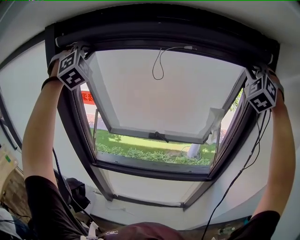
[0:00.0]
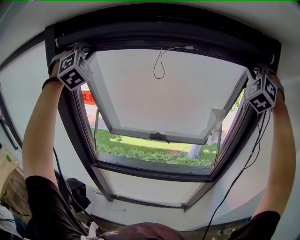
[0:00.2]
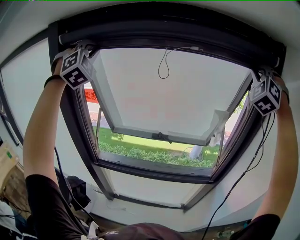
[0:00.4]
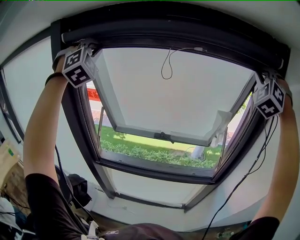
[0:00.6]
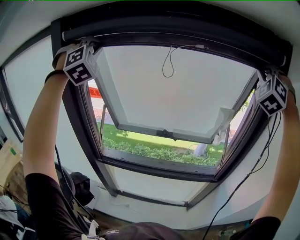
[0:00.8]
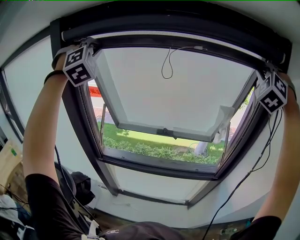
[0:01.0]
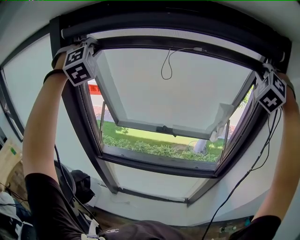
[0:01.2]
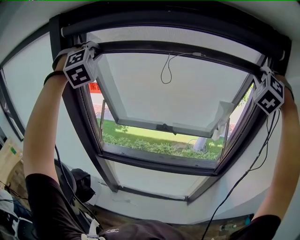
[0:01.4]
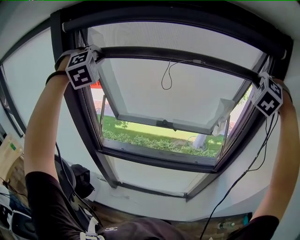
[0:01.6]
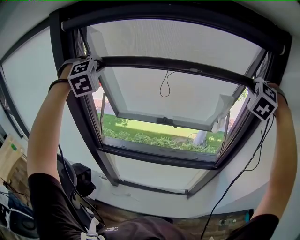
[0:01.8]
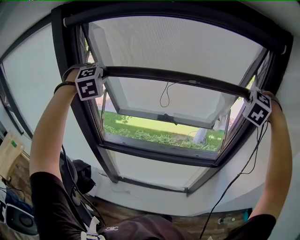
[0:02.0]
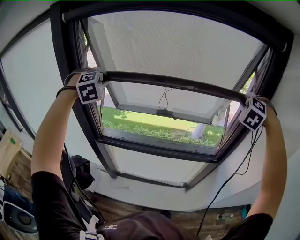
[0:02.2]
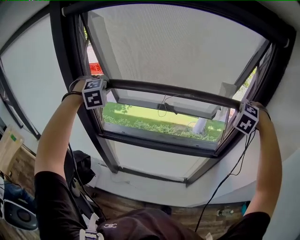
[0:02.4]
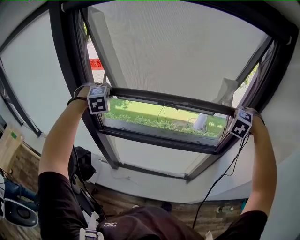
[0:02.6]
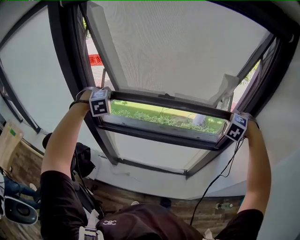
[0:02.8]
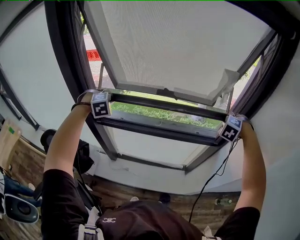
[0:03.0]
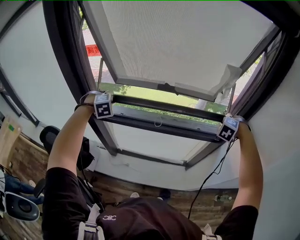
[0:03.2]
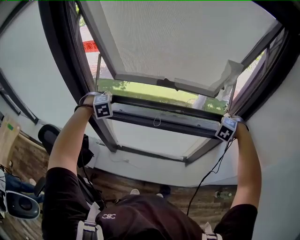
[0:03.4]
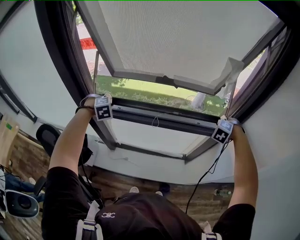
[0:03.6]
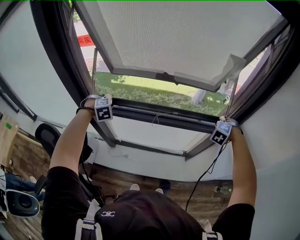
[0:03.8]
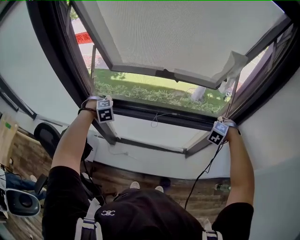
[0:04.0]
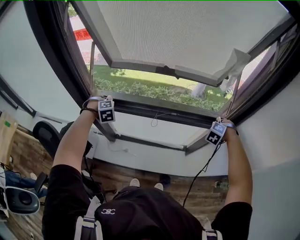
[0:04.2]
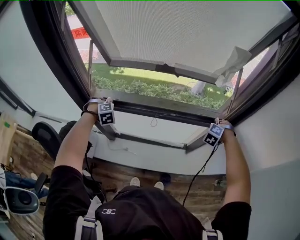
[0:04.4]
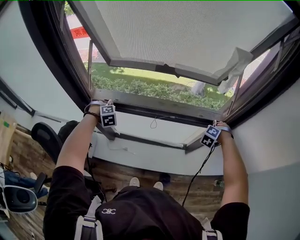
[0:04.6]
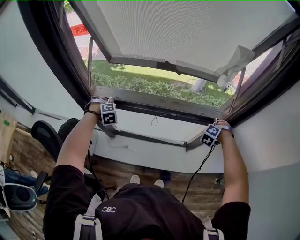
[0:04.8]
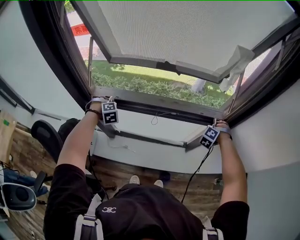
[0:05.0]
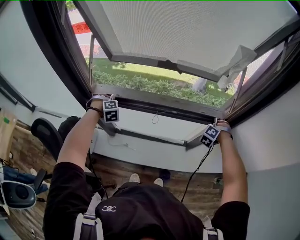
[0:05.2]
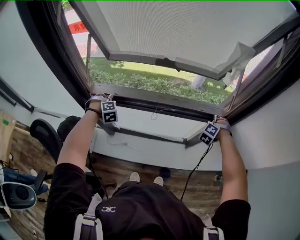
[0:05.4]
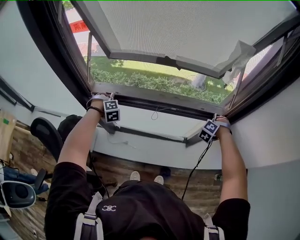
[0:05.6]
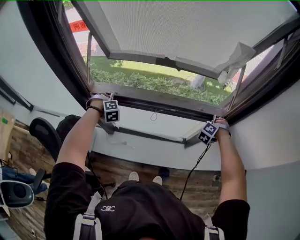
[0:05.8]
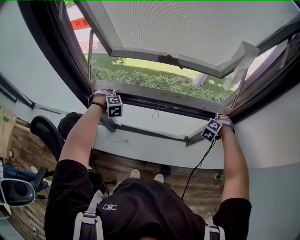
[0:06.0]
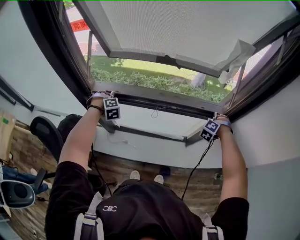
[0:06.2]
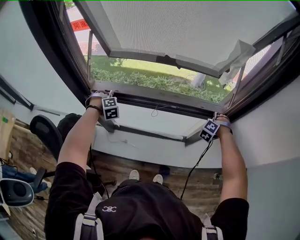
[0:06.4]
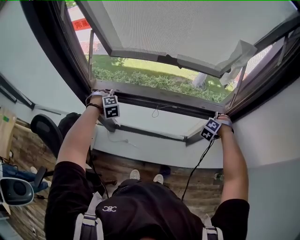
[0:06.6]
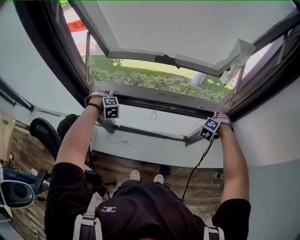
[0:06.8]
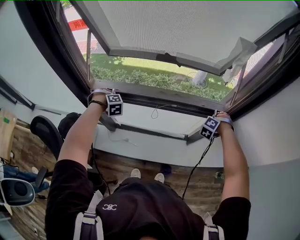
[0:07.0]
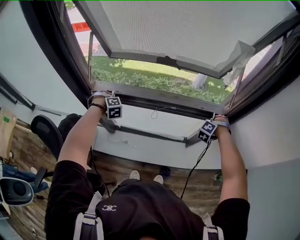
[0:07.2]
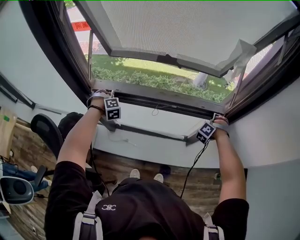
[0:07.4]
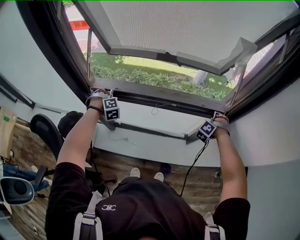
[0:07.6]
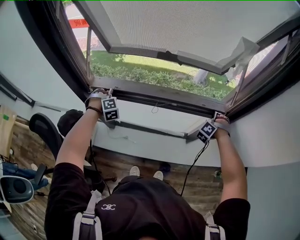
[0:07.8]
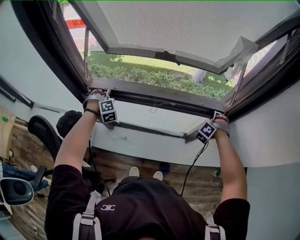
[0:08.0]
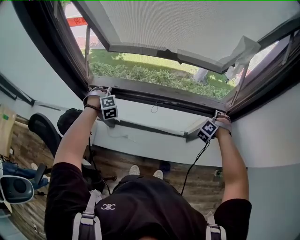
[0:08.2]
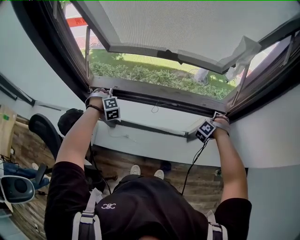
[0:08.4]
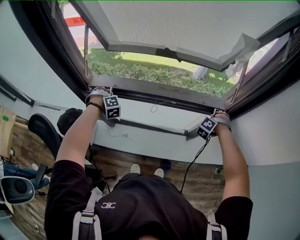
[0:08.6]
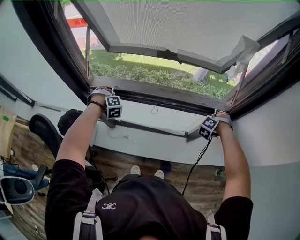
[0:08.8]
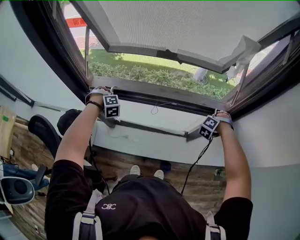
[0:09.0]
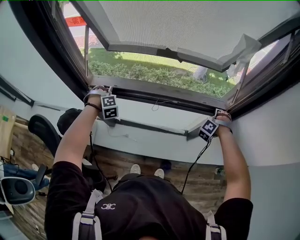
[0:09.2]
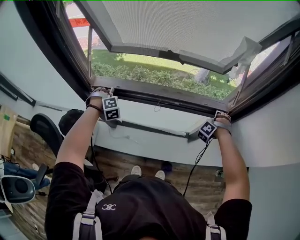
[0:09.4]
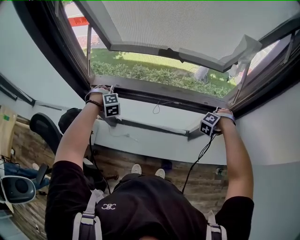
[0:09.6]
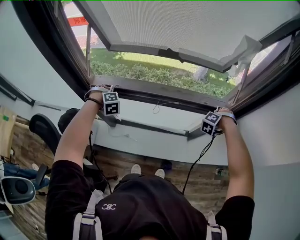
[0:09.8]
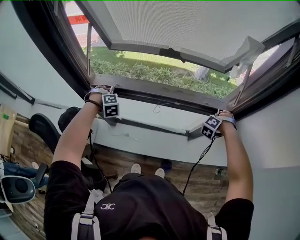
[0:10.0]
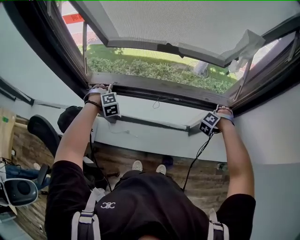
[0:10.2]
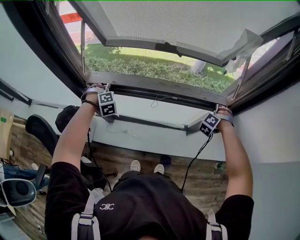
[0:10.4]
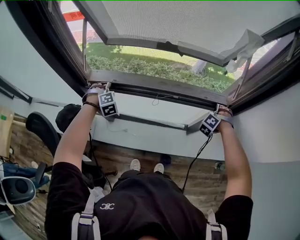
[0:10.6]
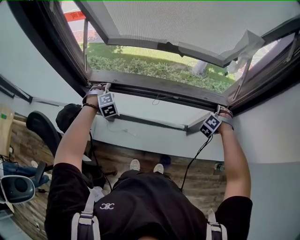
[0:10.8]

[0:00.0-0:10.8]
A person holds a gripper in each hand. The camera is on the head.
0:00.0 to 0:01.6: The two grippers go some 10 cm downward. The left gripper rotates approximately 20 degrees, while the right gripper swivels approximately 30 degrees.
0:01.6 to 0:03.0: The two grippers go approximately 40 cm downward. The right gripper tilts its fingers roughly 30 degrees downward. The left gripper tips its fingers downward by approximately 30 degrees.
0:03.0 to 0:04.6: Both grippers move downward, some 25 cm.
0:04.6 to 0:09.2: The grippers stay close to where they were, moving slightly.
0:09.2 to 0:10.8: The left gripper opens its fingers.

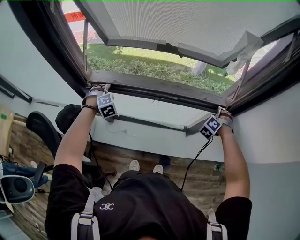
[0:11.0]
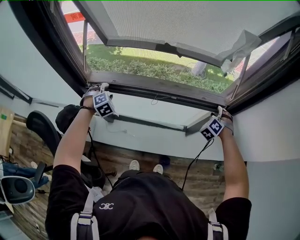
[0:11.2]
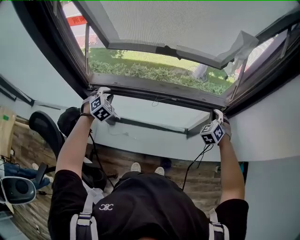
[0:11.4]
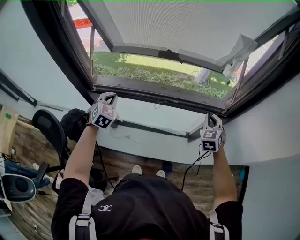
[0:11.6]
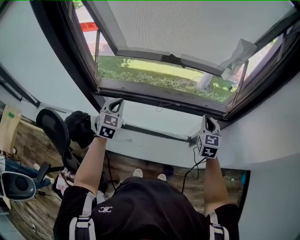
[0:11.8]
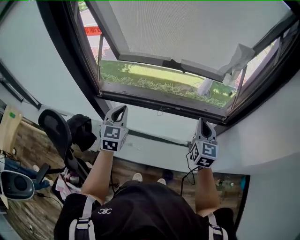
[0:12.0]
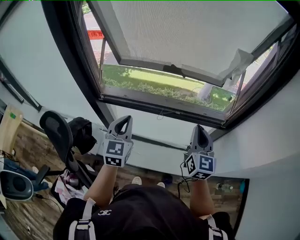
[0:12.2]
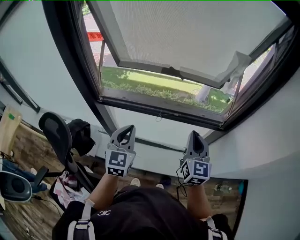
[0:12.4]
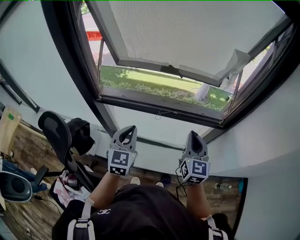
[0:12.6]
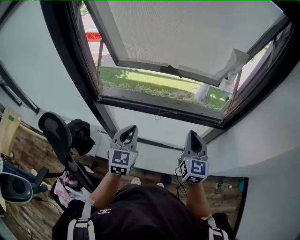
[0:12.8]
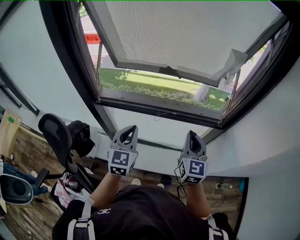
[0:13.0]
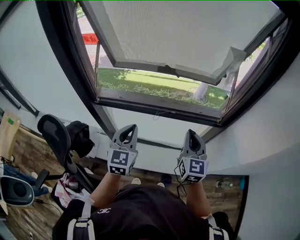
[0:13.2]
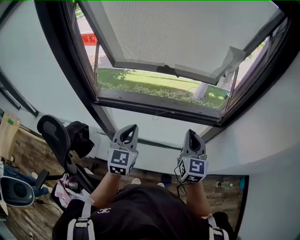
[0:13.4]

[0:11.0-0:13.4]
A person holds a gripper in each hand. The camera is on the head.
0:11.0 to 0:12.2: The right gripper is displaced upward, to the left and backward by roughly 30 cm, tips its fingers upward by about 40 degrees, and closes up. Meanwhile the left gripper moves upward, backward and to the right, some 30 cm, tips its fingers upward by roughly 40 degrees, and closes its fingers.
0:12.2 to 0:13.4: The left gripper shifts by roughly 5 cm.

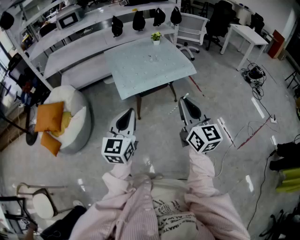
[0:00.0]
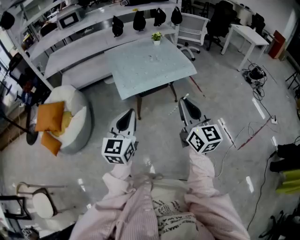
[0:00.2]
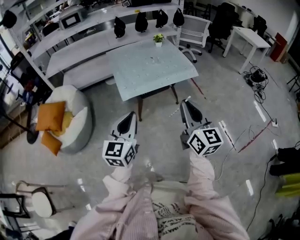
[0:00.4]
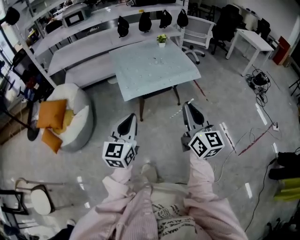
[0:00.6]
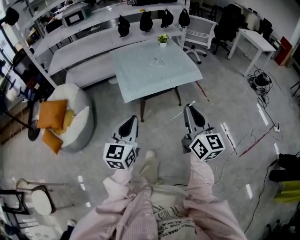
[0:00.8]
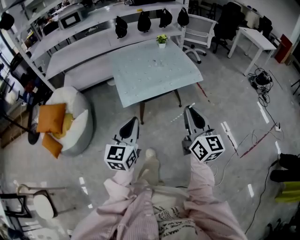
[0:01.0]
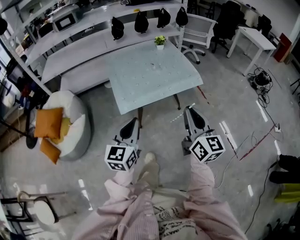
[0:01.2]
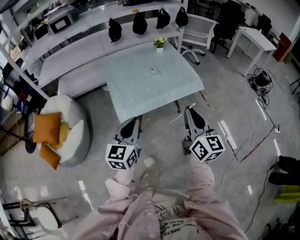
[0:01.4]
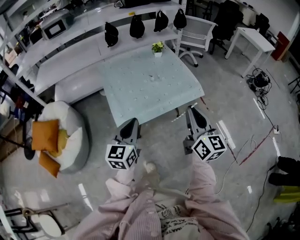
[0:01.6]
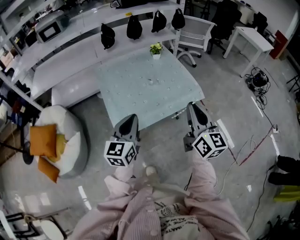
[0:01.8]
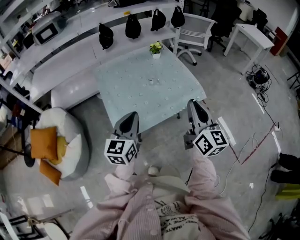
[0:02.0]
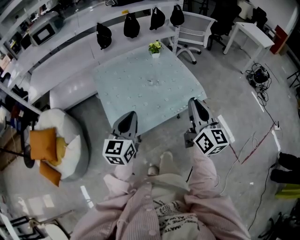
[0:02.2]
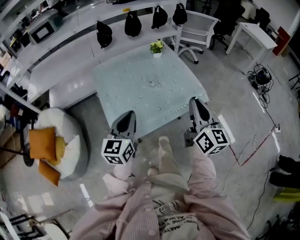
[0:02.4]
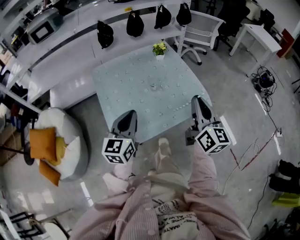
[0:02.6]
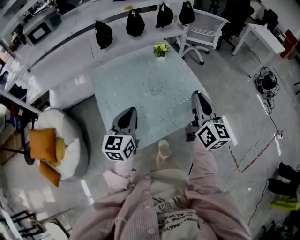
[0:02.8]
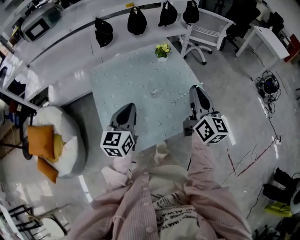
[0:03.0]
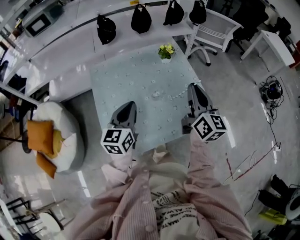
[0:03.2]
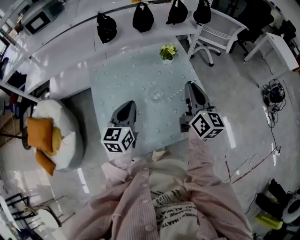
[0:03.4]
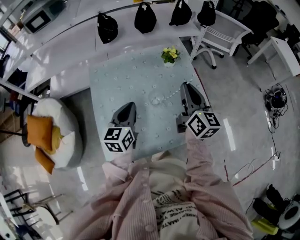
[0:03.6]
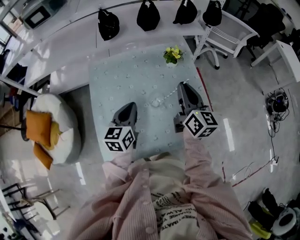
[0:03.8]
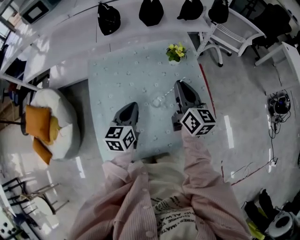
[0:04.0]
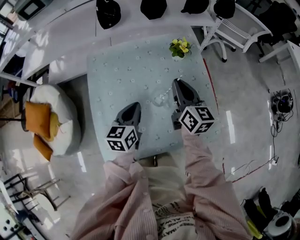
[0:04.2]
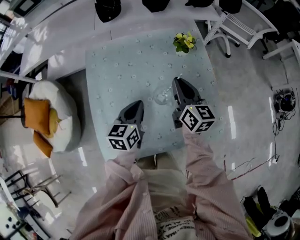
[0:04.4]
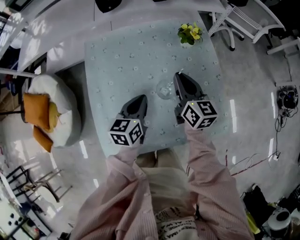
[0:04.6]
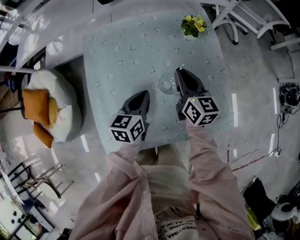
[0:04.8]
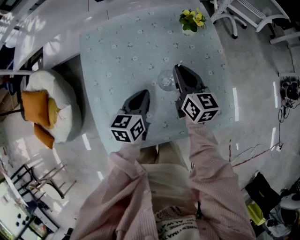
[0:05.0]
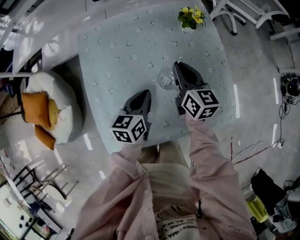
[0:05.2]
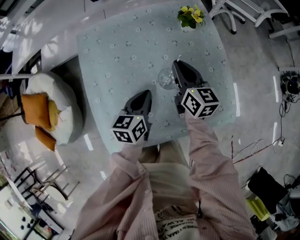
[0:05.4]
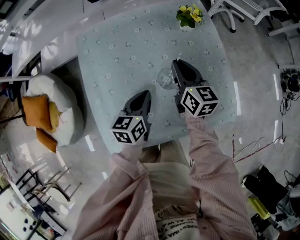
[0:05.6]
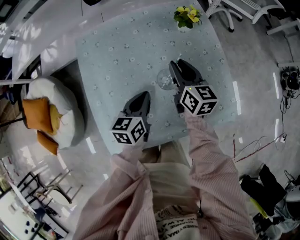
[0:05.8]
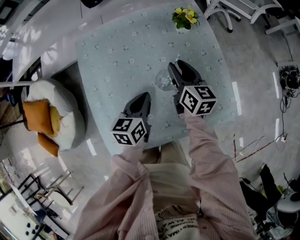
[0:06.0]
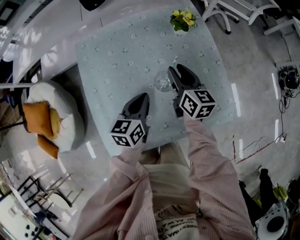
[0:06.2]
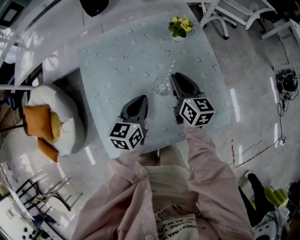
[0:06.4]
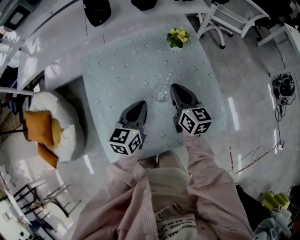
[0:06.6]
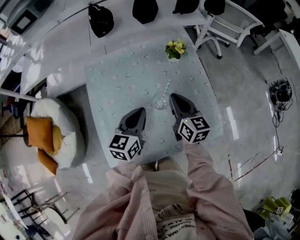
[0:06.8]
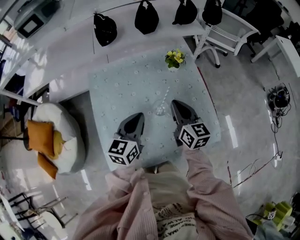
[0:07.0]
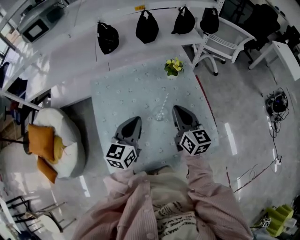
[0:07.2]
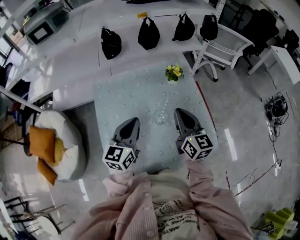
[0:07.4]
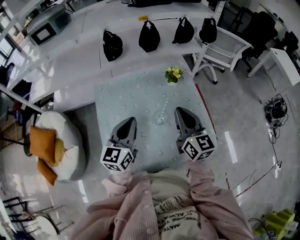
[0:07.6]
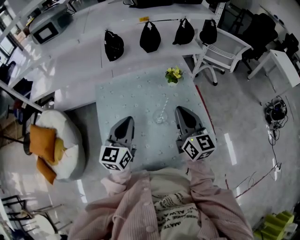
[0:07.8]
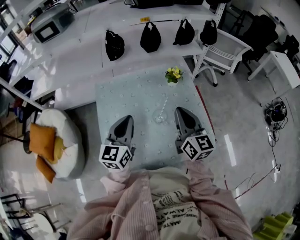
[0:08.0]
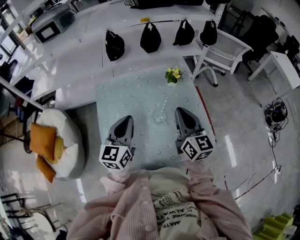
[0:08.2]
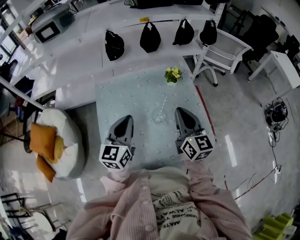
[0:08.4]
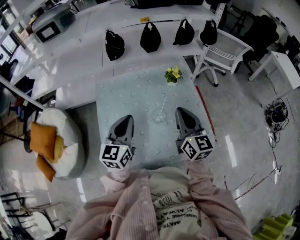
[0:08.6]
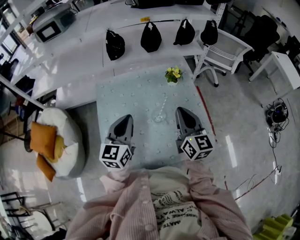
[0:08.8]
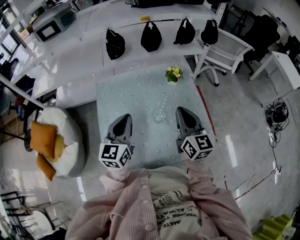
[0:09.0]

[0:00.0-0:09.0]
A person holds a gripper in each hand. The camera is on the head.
0:00.0 to 0:01.6: Both grippers travel together forward, approximately 25 cm.
0:01.6 to 0:03.0: Both grippers move forward, about 30 cm.
0:03.0 to 0:04.4: The right gripper goes some 30 cm forward, downward and to the left, and swivels some 30 degrees. Meanwhile the left gripper goes approximately 20 cm downward and forward, and changes its angle by approximately 20 degrees.
0:04.4 to 0:06.0: The left gripper is displaced downward by approximately 5 cm; the right gripper travels downward by some 10 cm, and opens its fingers.
0:06.0 to 0:07.6: The right gripper is displaced upward and backward by roughly 25 cm, changes its angle by roughly 20 degrees, and closes its fingers. The left gripper goes approximately 20 cm upward, and swivels about 30 degrees.
0:07.6 to 0:09.0: There are only small adjustments of the grippers.

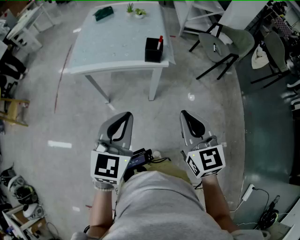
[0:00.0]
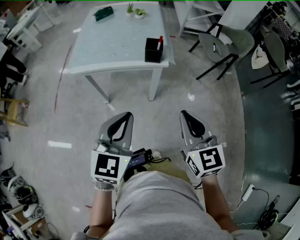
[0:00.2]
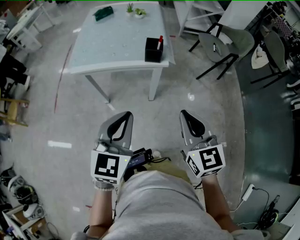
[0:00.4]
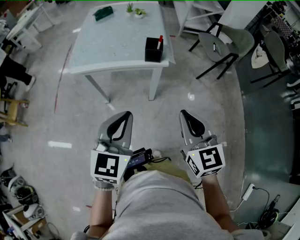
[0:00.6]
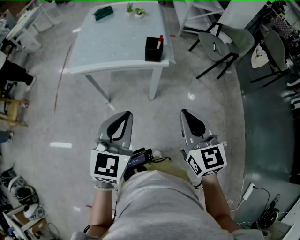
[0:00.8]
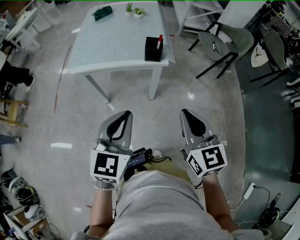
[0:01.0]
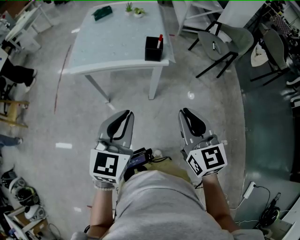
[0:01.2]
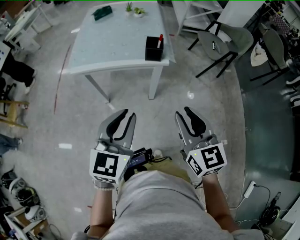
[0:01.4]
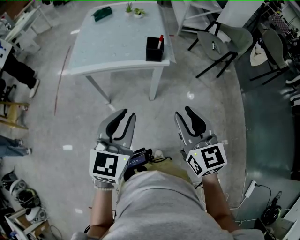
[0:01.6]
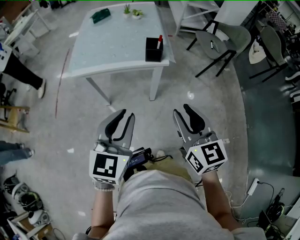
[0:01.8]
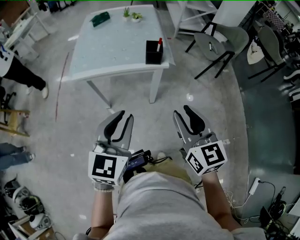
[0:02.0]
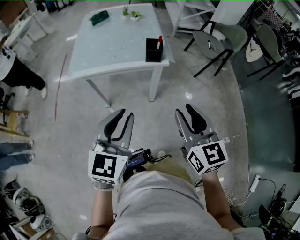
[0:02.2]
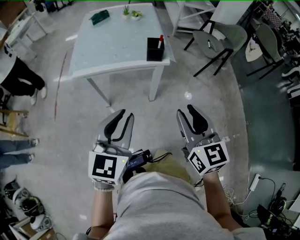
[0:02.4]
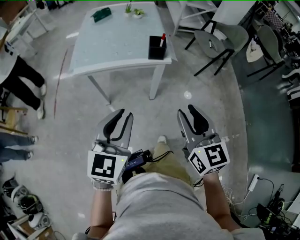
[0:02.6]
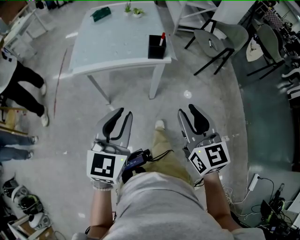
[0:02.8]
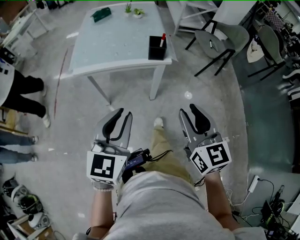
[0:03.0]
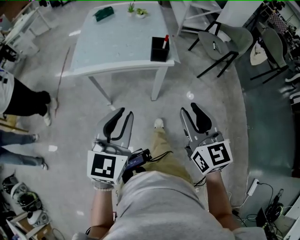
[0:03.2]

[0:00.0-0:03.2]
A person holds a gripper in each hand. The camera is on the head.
0:00.0 to 0:01.6: The right gripper opens its fingers.
0:01.6 to 0:03.2: There are only small adjustments of the grippers.
